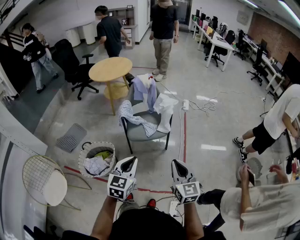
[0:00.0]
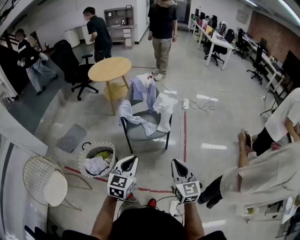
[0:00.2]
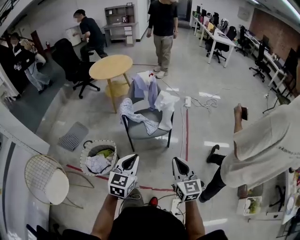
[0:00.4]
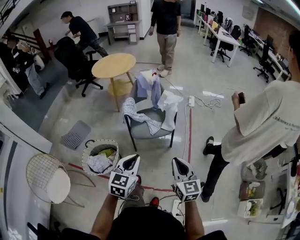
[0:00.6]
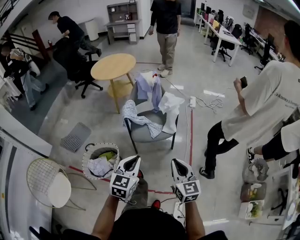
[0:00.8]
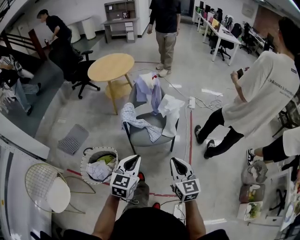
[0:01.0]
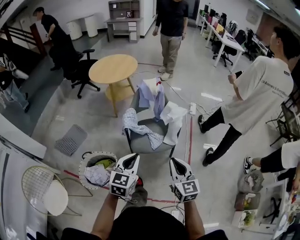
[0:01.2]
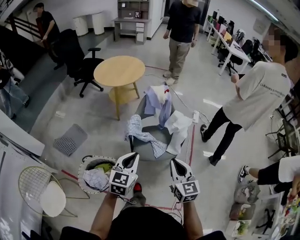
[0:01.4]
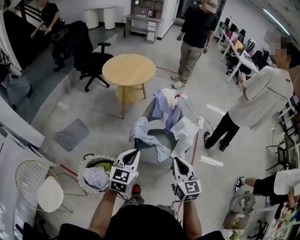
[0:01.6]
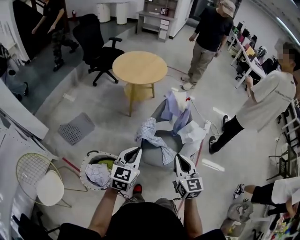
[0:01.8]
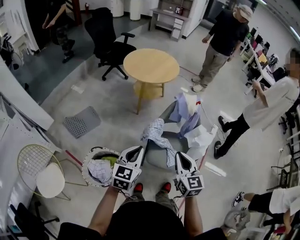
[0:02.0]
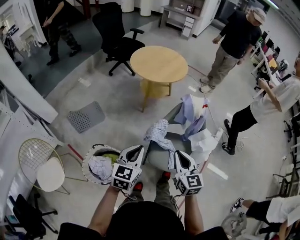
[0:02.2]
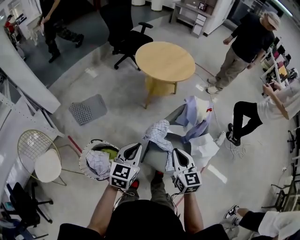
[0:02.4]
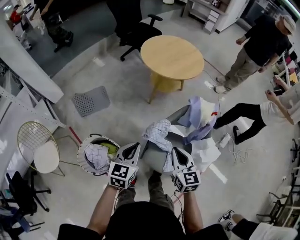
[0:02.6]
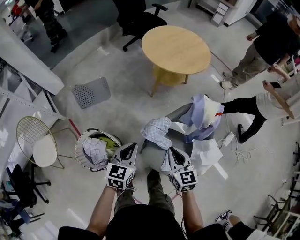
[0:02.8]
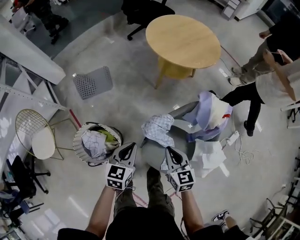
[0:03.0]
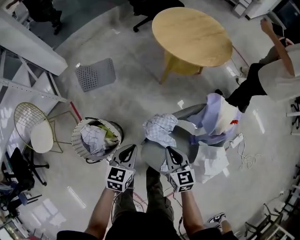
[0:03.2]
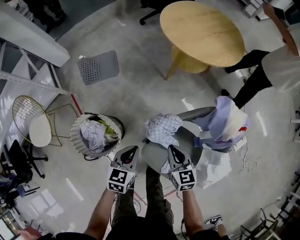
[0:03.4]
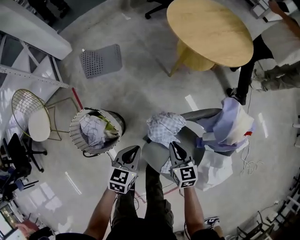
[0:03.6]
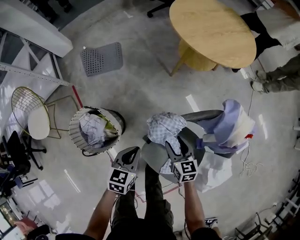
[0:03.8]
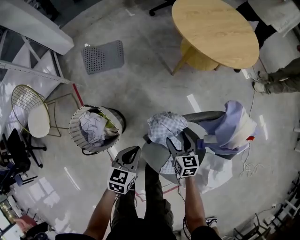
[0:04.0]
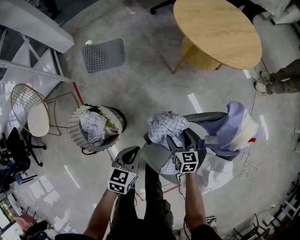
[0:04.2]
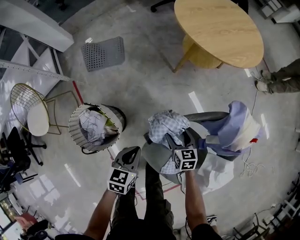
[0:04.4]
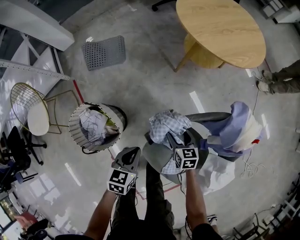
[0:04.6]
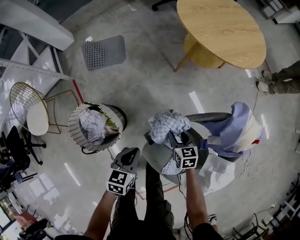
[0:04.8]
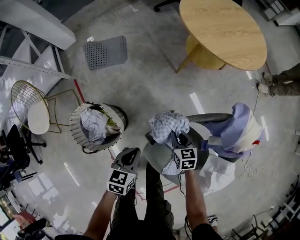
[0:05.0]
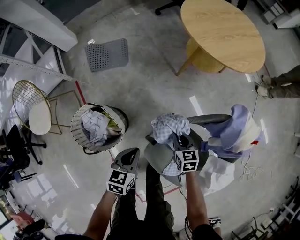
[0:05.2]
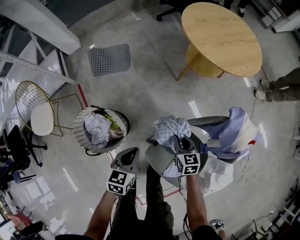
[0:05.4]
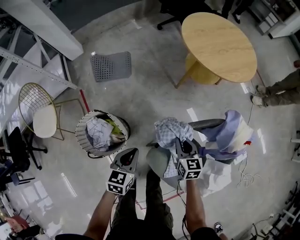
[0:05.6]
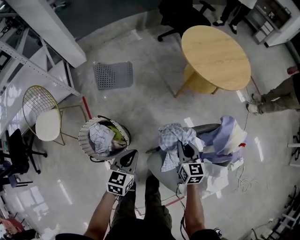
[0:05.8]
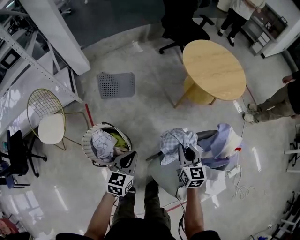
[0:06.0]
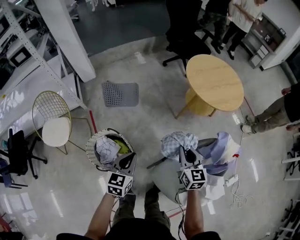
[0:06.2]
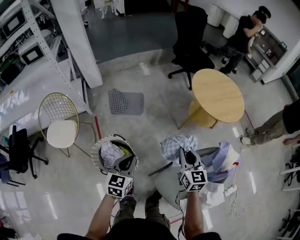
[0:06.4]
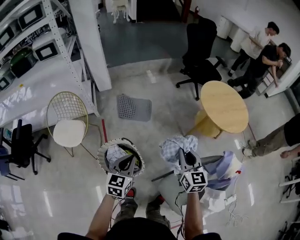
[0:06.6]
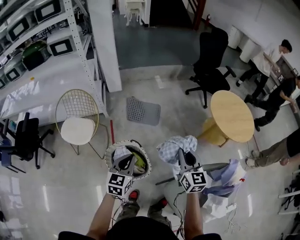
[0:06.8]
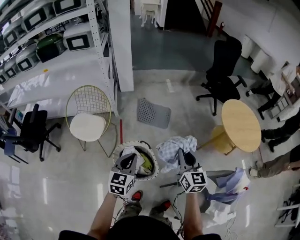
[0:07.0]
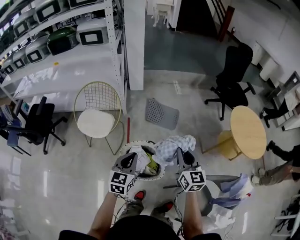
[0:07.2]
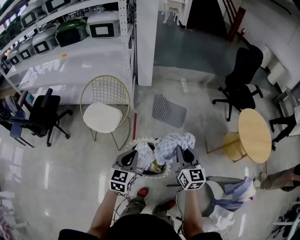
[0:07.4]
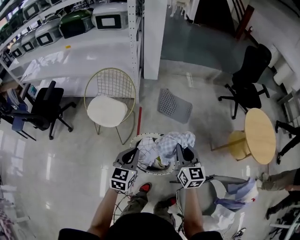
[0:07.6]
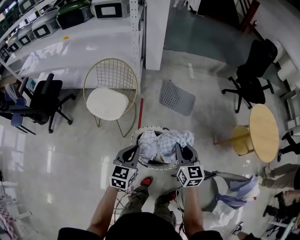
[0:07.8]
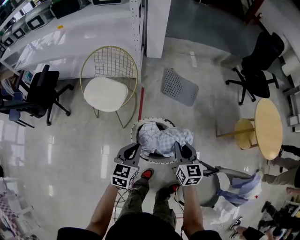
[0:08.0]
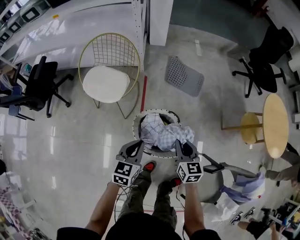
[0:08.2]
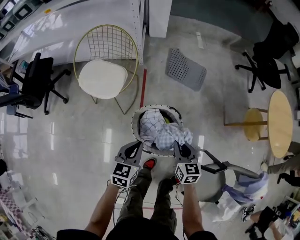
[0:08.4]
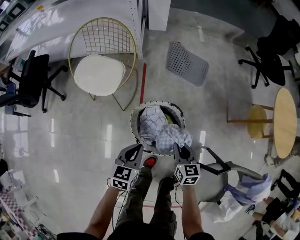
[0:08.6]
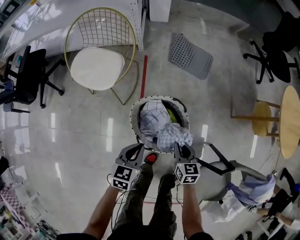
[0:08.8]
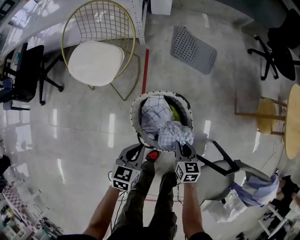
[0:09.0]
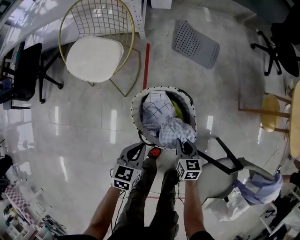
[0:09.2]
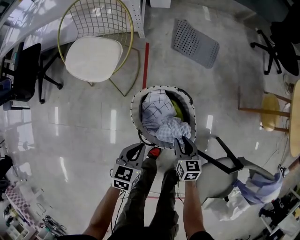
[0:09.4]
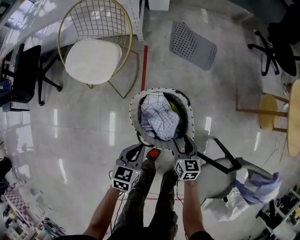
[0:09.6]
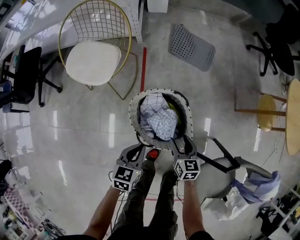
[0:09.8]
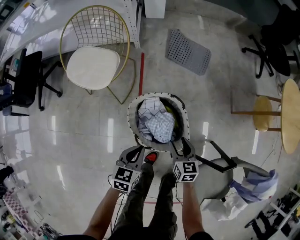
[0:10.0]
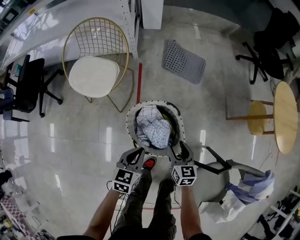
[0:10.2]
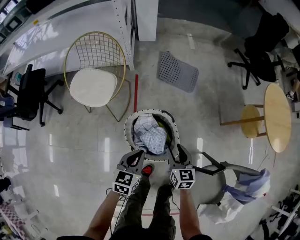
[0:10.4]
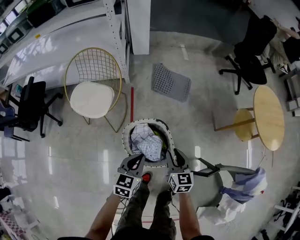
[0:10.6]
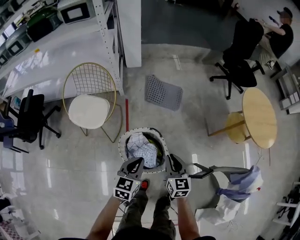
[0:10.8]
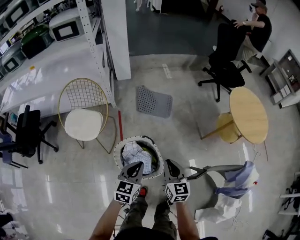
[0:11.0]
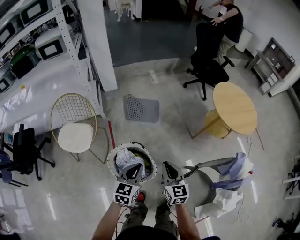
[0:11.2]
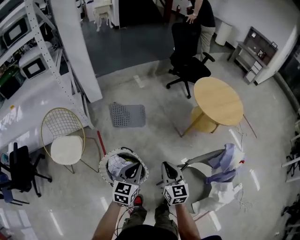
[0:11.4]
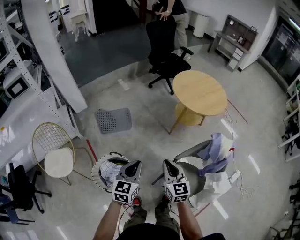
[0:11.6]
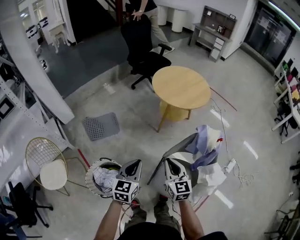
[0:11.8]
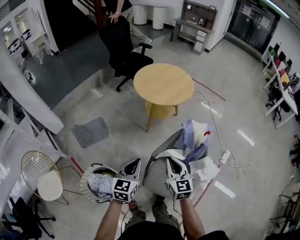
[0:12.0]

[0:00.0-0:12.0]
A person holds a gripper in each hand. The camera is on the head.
0:00.0 to 0:01.6: The two grippers go approximately 35 cm forward and to the left.
0:01.6 to 0:03.0: The right gripper moves approximately 35 cm, and turns by about 40 degrees. The left gripper shifts by some 25 cm, and changes its angle by approximately 40 degrees.
0:03.0 to 0:04.4: The right gripper travels downward and forward by some 25 cm, and opens its fingers, while the left gripper travels downward by roughly 15 cm.
0:04.4 to 0:06.0: The right gripper shifts about 25 cm upward, rotates some 20 degrees, and closes up. The left gripper heads upward and to the left, covering about 20 cm.
0:06.0 to 0:07.6: Both grippers are carried roughly 40 cm. The left gripper swivels some 30 degrees, while the right gripper changes its angle by roughly 30 degrees.
0:07.6 to 0:09.0: The two grippers go roughly 35 cm downward. The left gripper turns by approximately 20 degrees; the right gripper swivels some 30 degrees.
0:09.0 to 0:10.4: Both grippers travel together upward, roughly 10 cm. The right gripper opens up.
0:10.4 to 0:12.0: The pair of grippers is taken roughly 40 cm. The right gripper changes its angle by approximately 50 degrees, and closes. Meanwhile the left gripper swivels some 50 degrees.

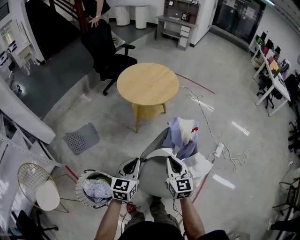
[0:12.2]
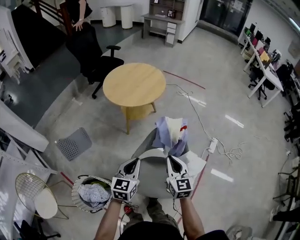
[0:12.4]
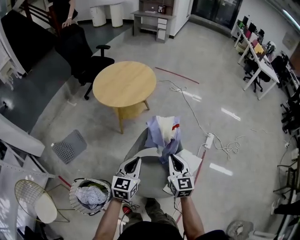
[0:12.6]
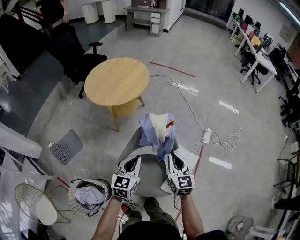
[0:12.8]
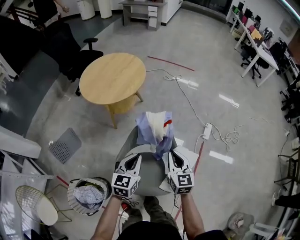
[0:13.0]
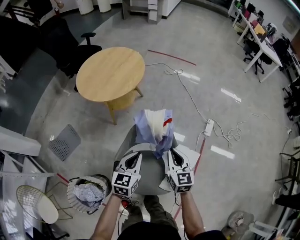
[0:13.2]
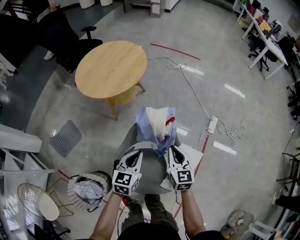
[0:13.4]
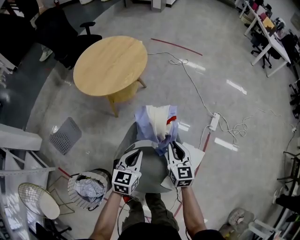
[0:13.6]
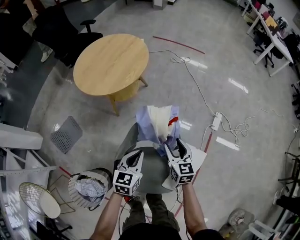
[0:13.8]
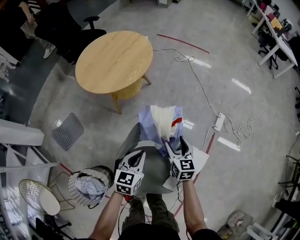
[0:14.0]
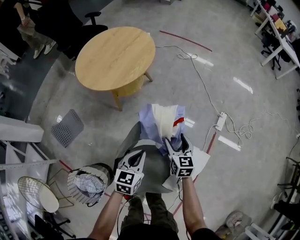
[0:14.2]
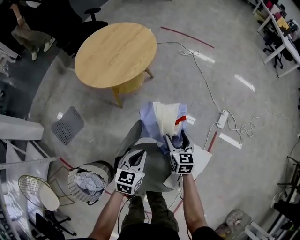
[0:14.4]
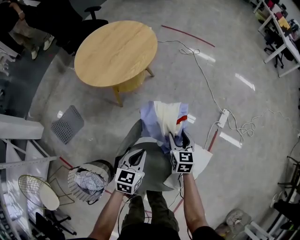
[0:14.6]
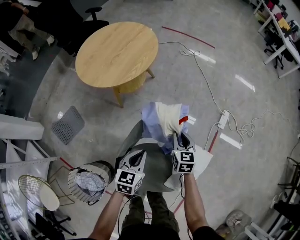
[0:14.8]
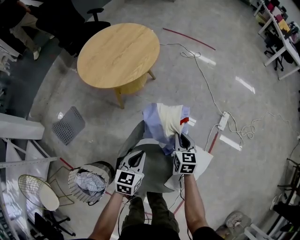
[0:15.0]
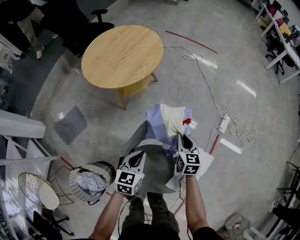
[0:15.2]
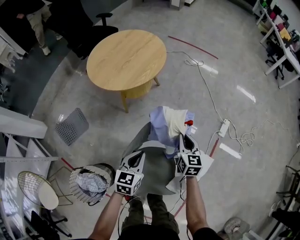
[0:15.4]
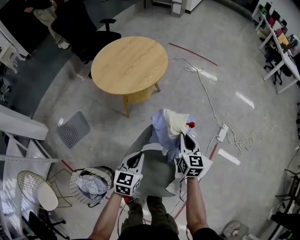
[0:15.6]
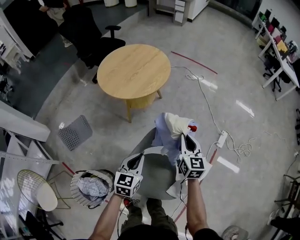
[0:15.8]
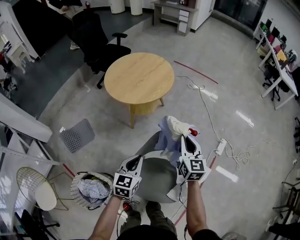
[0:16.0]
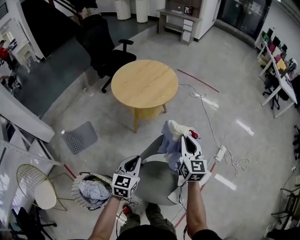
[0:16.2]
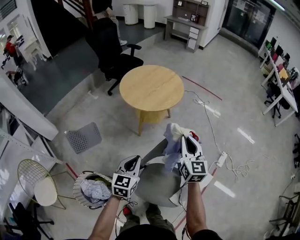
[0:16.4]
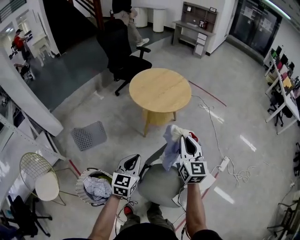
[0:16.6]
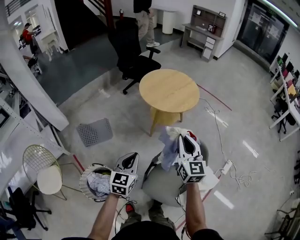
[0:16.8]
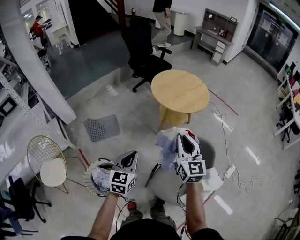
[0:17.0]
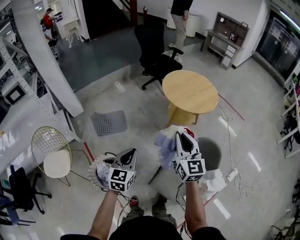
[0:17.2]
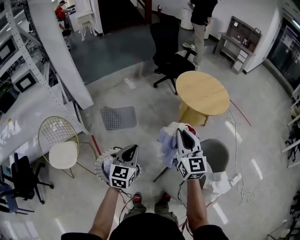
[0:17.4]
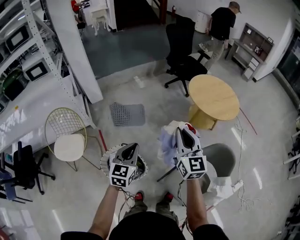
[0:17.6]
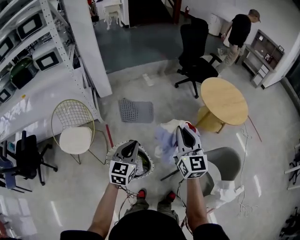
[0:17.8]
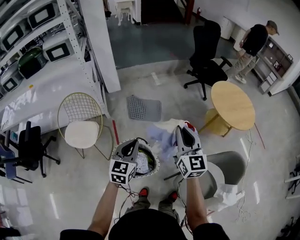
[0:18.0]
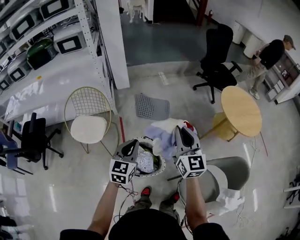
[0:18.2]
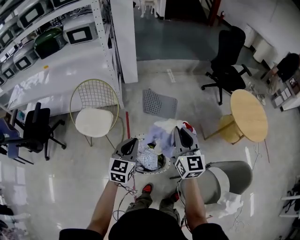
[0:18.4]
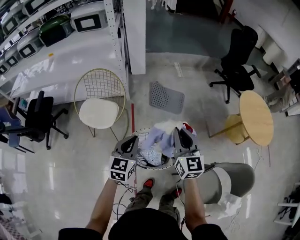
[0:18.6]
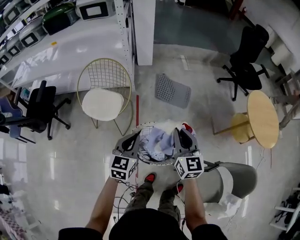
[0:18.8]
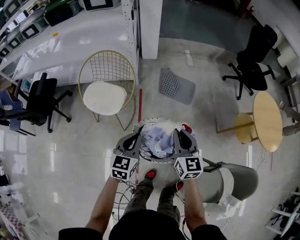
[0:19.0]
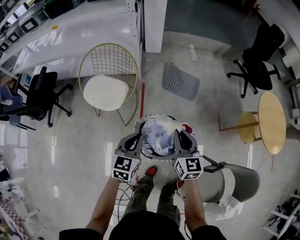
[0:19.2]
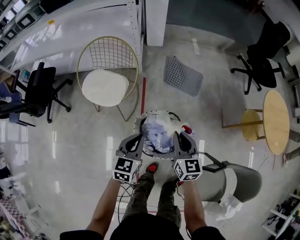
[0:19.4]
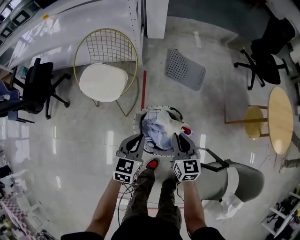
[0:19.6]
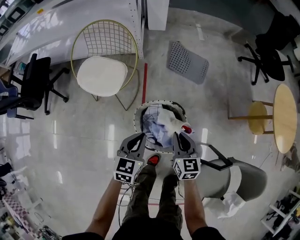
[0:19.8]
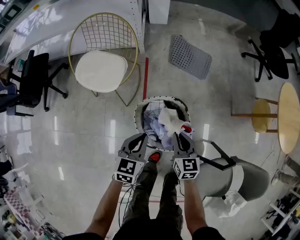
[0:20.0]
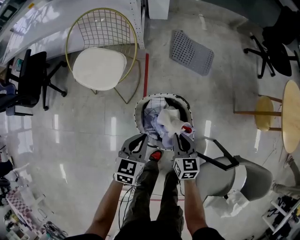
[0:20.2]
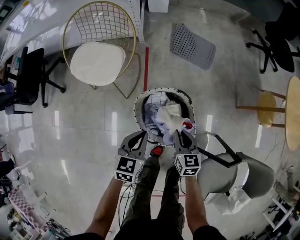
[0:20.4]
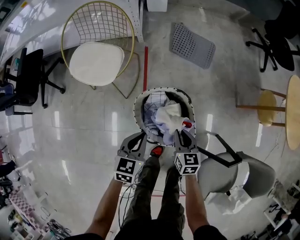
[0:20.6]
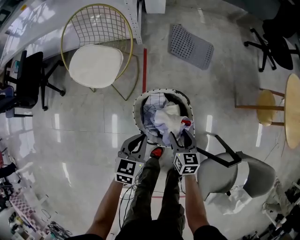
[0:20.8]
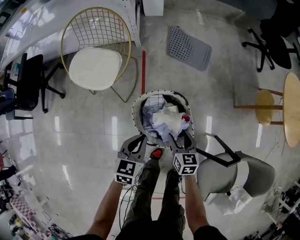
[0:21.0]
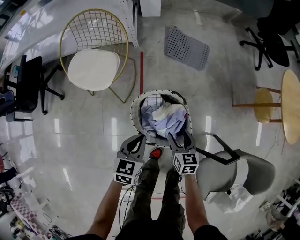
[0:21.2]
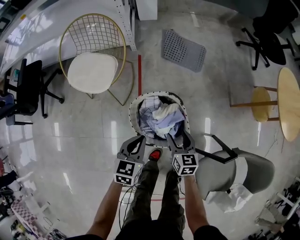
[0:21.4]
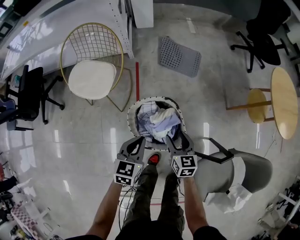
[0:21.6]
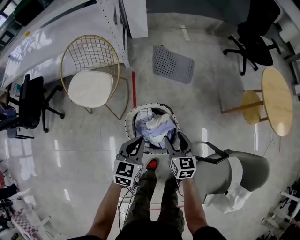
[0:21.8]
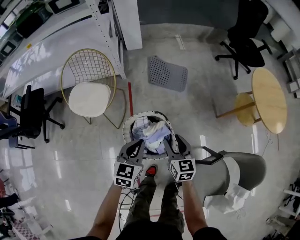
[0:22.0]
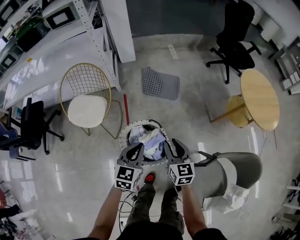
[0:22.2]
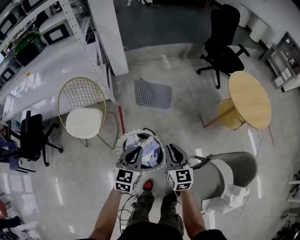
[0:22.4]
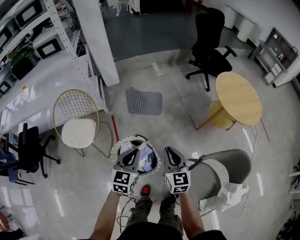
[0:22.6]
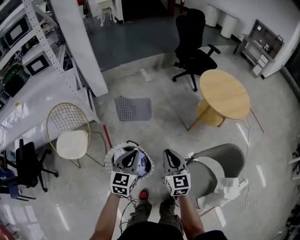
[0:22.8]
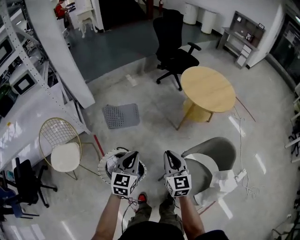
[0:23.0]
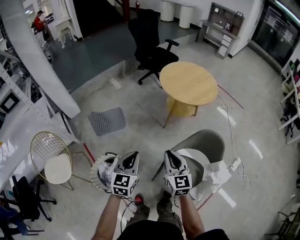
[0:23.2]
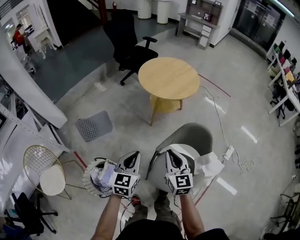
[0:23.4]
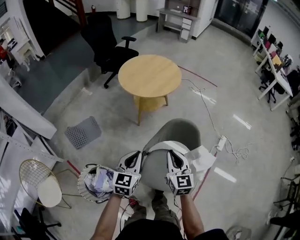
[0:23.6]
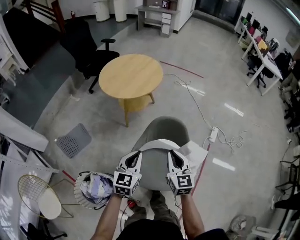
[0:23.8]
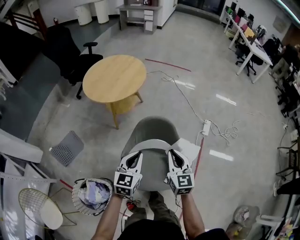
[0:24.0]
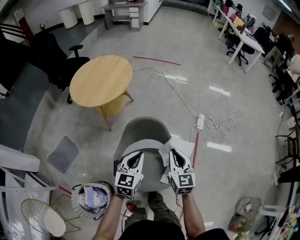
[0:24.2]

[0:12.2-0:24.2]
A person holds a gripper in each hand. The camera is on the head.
0:12.2 to 0:13.8: The right gripper travels forward, to the right and downward by about 30 cm, and opens; the left gripper goes some 30 cm to the right, forward and downward.
0:13.8 to 0:15.2: The right gripper shifts by approximately 5 cm, and closes its fingers.
0:15.2 to 0:16.6: The right gripper heads upward and to the left, covering approximately 35 cm, and swivels approximately 30 degrees. The left gripper moves upward, to the left and backward, roughly 25 cm, and turns by roughly 20 degrees.
0:16.6 to 0:18.2: The pair of grippers is taken approximately 50 cm. The left gripper turns by some 40 degrees. The right gripper swivels some 40 degrees.
0:18.2 to 0:19.8: Both grippers move downward and to the left, approximately 30 cm. The left gripper turns by approximately 20 degrees. Meanwhile the right gripper turns by about 30 degrees.
0:19.8 to 0:21.2: The left gripper is displaced downward by some 5 cm; the right gripper moves downward, roughly 10 cm, and opens.
0:21.2 to 0:22.6: Both grippers travel together upward and to the right, approximately 30 cm. The right gripper swivels some 30 degrees, and closes up. Meanwhile the left gripper turns by about 20 degrees.
0:22.6 to 0:24.2: Both grippers are carried some 60 cm. The left gripper rotates roughly 60 degrees; the right gripper changes its angle by some 60 degrees.
